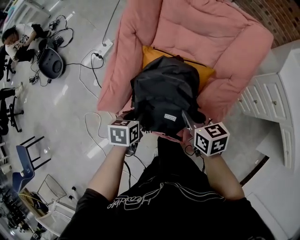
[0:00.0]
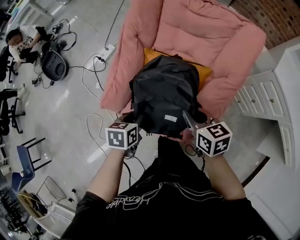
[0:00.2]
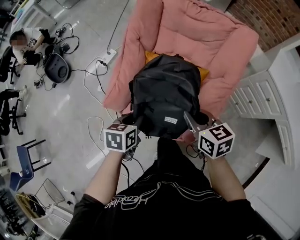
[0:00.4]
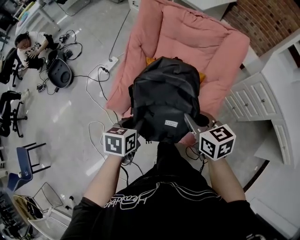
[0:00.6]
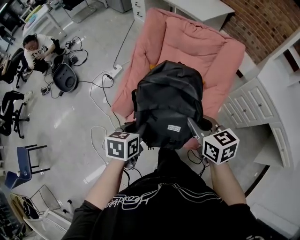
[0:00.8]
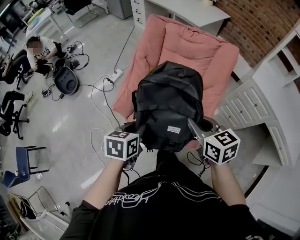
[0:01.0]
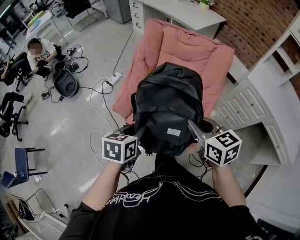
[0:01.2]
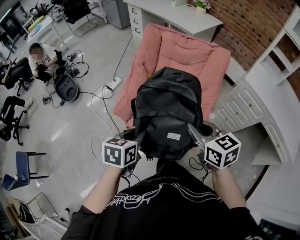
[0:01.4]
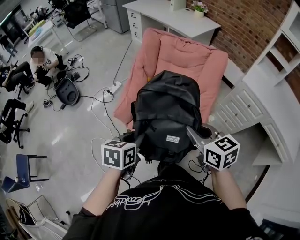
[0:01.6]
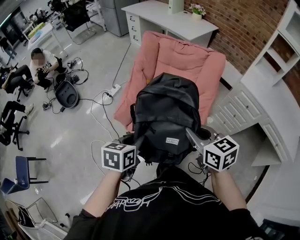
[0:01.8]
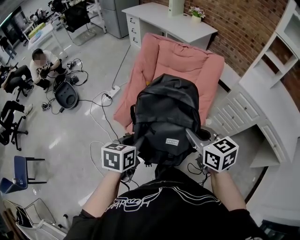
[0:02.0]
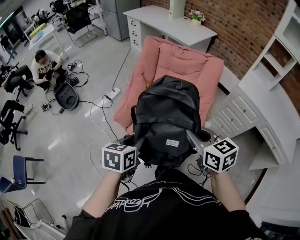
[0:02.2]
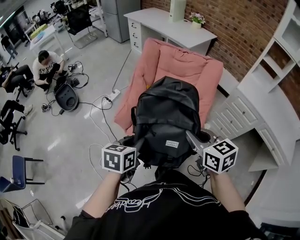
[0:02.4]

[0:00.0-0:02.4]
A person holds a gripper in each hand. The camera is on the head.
0:00.0 to 0:01.2: Both grippers move upward and backward, approximately 25 cm.
0:01.2 to 0:02.4: The left gripper moves some 5 cm. The right gripper shifts by approximately 5 cm.

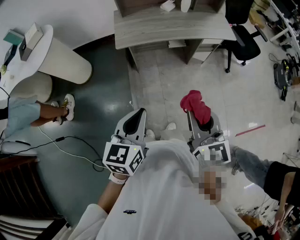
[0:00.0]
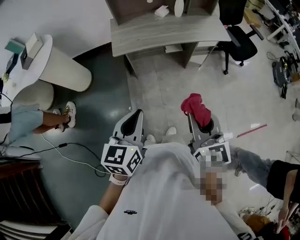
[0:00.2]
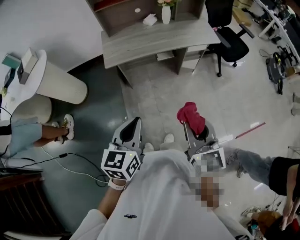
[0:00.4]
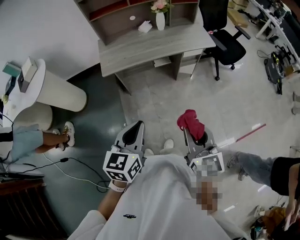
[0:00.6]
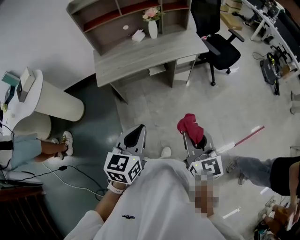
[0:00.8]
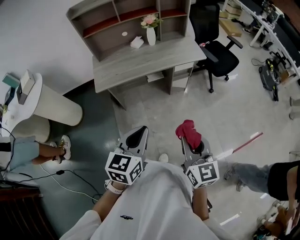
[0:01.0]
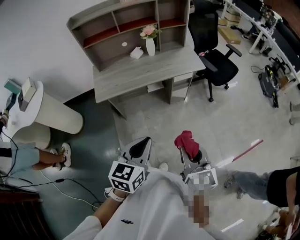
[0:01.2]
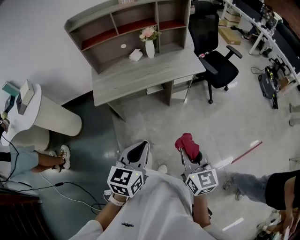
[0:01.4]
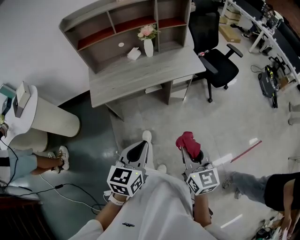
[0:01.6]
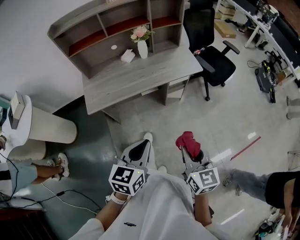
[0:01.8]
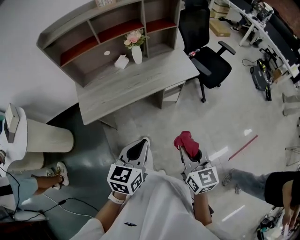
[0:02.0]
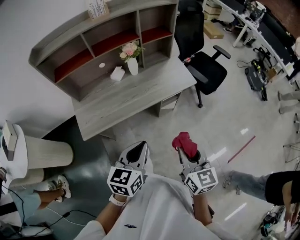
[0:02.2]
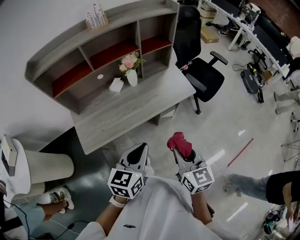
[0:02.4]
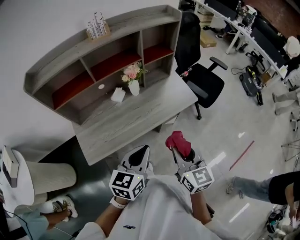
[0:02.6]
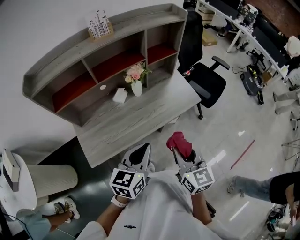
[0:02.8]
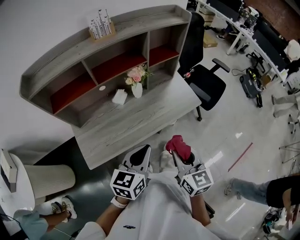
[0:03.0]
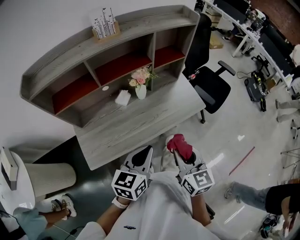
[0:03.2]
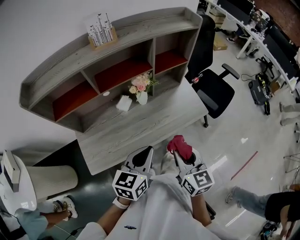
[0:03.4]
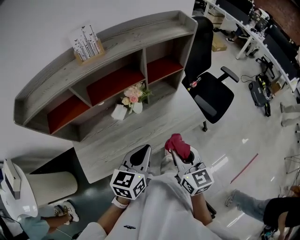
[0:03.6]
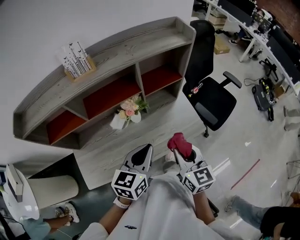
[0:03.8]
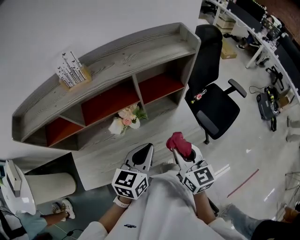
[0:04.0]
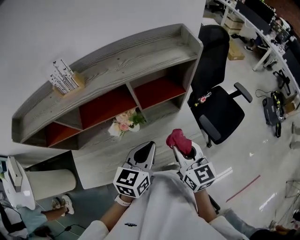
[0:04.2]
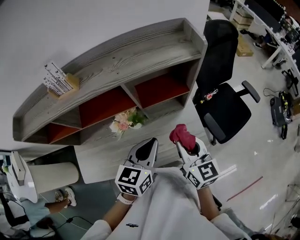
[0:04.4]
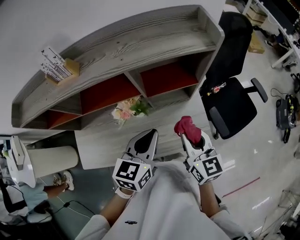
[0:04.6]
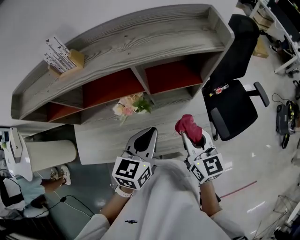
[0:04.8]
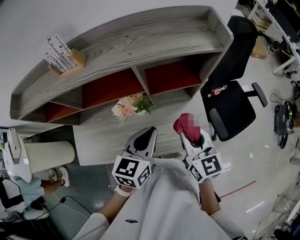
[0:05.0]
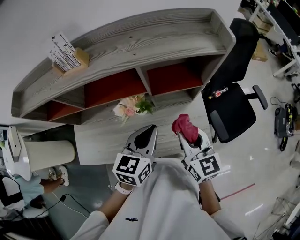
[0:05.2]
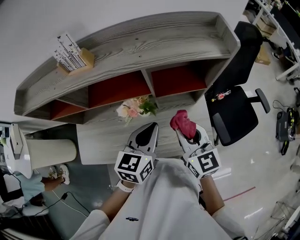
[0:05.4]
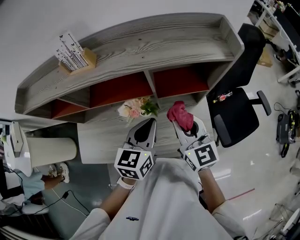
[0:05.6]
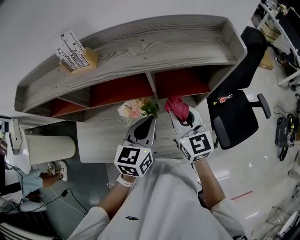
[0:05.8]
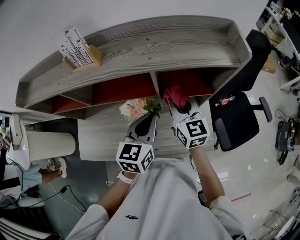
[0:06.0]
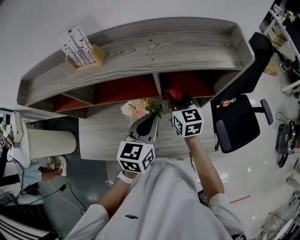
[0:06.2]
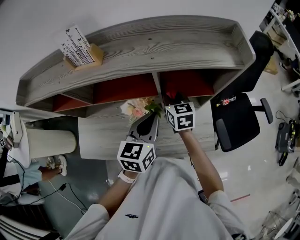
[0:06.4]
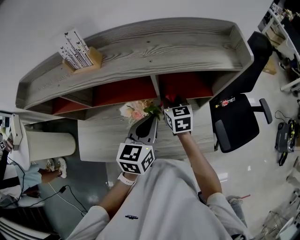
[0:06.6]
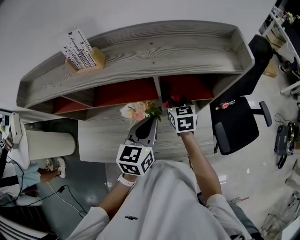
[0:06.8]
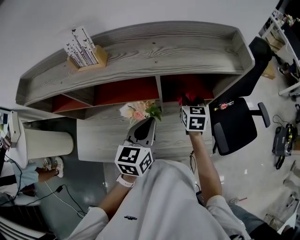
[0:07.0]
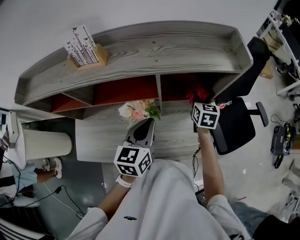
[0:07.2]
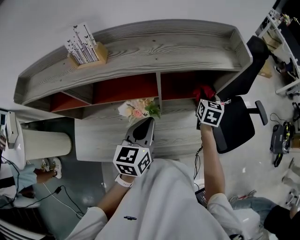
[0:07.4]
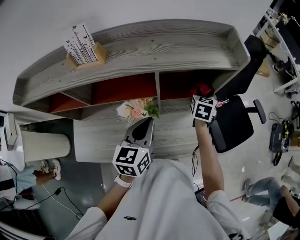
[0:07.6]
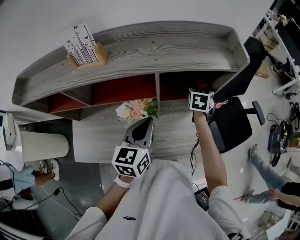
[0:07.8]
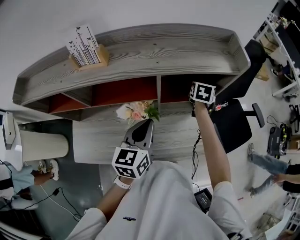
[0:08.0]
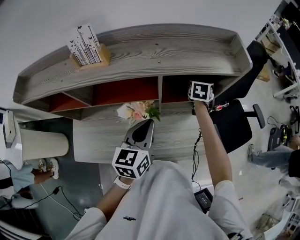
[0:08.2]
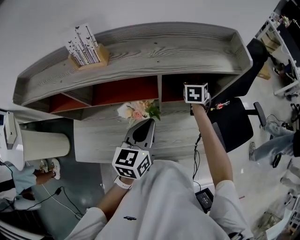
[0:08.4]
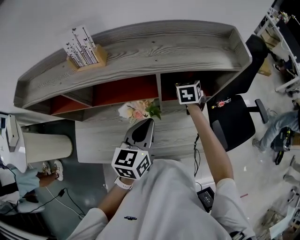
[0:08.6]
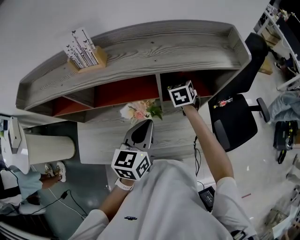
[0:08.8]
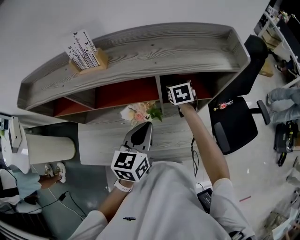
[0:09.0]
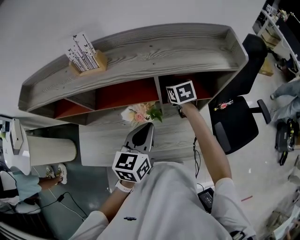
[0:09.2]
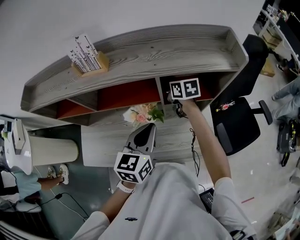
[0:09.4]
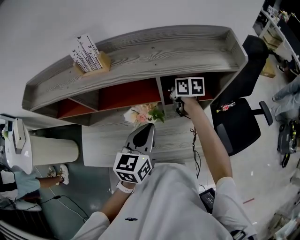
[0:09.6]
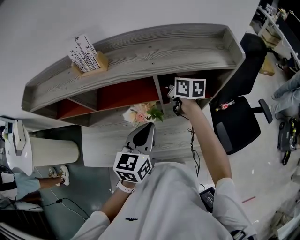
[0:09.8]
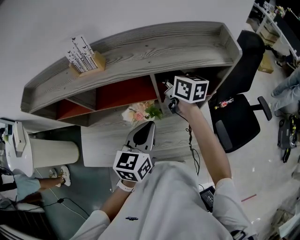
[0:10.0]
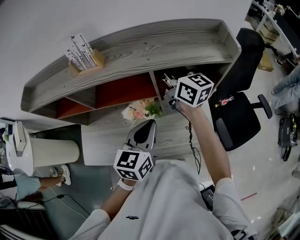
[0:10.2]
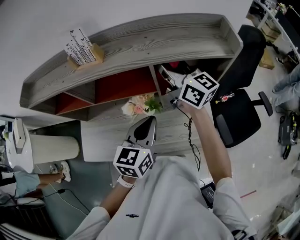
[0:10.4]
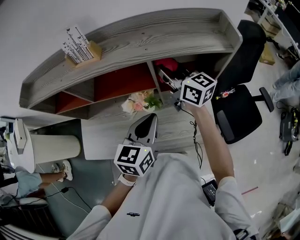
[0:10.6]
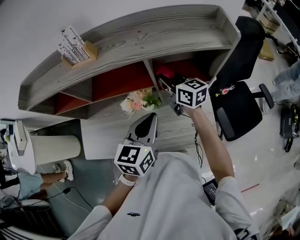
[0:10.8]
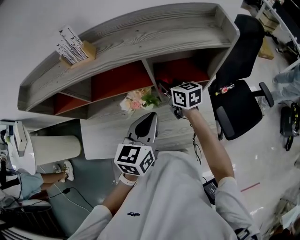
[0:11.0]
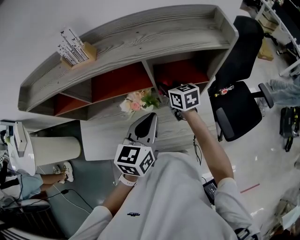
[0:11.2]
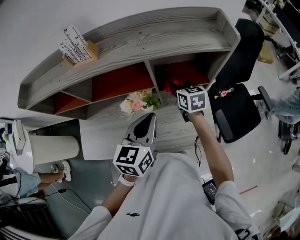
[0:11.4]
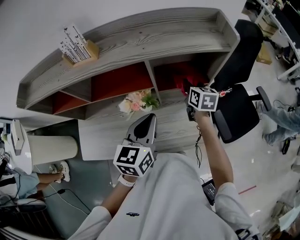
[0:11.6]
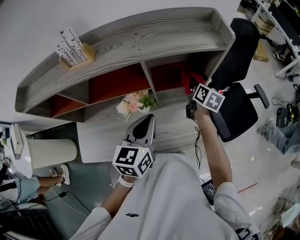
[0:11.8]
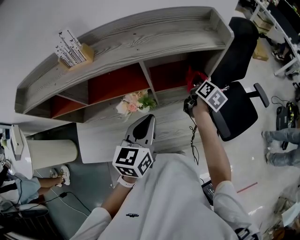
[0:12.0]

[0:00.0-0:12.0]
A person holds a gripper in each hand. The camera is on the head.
0:00.0 to 0:01.6: Both grippers move to the right and forward, roughly 20 cm.
0:01.6 to 0:03.0: The left gripper is displaced forward by some 35 cm. Meanwhile the right gripper heads forward and to the left, covering some 35 cm.
0:03.0 to 0:04.4: The right gripper goes about 35 cm forward. The left gripper is displaced forward and to the right by roughly 35 cm.
0:04.4 to 0:06.0: The right gripper travels forward and to the left by about 20 cm, while the left gripper goes approximately 10 cm forward and to the left.
0:06.0 to 0:07.6: The right gripper moves to the right, downward and forward, some 20 cm, and changes its angle by roughly 40 degrees.
0:07.6 to 0:09.0: The right gripper moves to the left, about 15 cm, and turns by some 30 degrees.
0:09.0 to 0:10.4: The right gripper goes about 25 cm upward, and points its fingers roughly 60 degrees further upward.
0:10.4 to 0:12.0: The right gripper is displaced downward by about 25 cm, and tilts its fingers approximately 50 degrees downward.

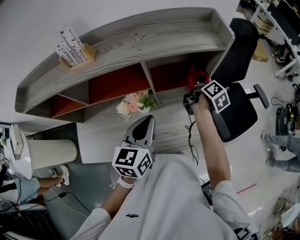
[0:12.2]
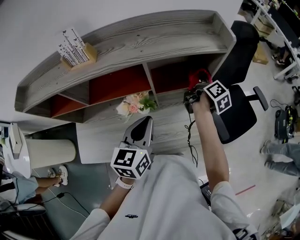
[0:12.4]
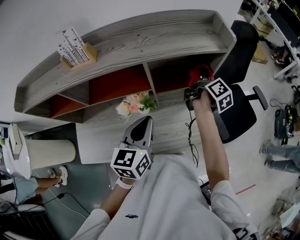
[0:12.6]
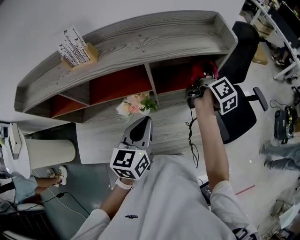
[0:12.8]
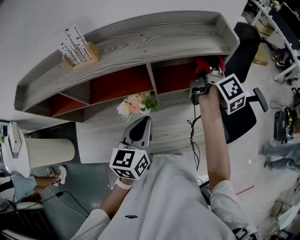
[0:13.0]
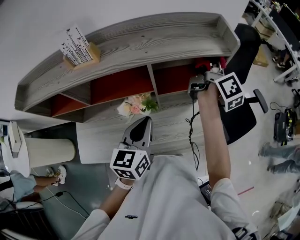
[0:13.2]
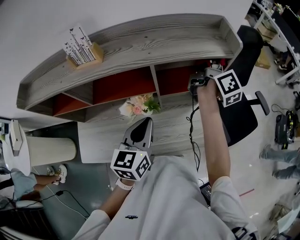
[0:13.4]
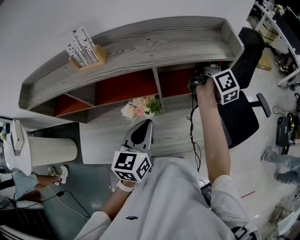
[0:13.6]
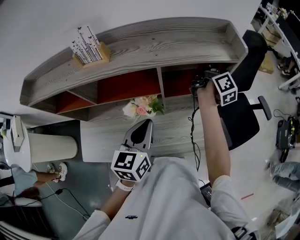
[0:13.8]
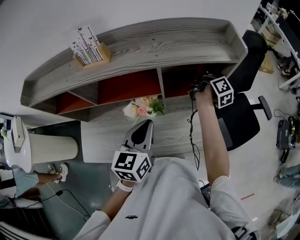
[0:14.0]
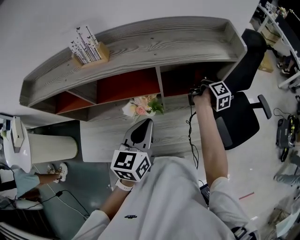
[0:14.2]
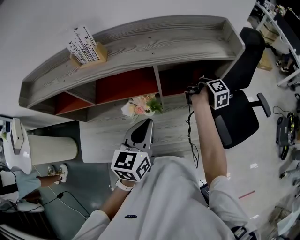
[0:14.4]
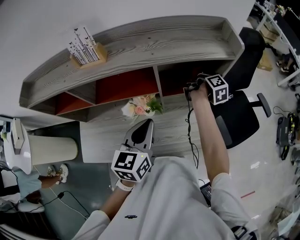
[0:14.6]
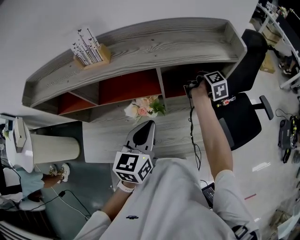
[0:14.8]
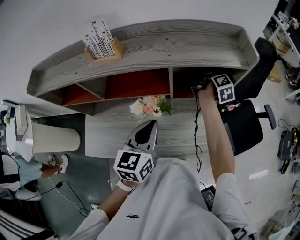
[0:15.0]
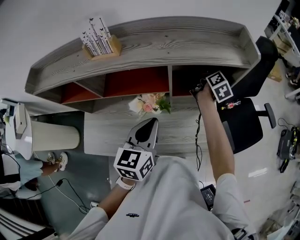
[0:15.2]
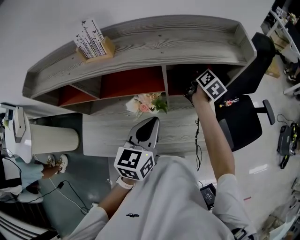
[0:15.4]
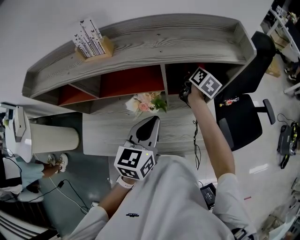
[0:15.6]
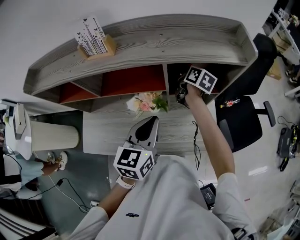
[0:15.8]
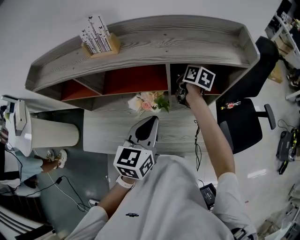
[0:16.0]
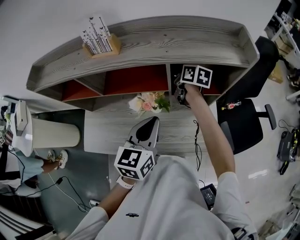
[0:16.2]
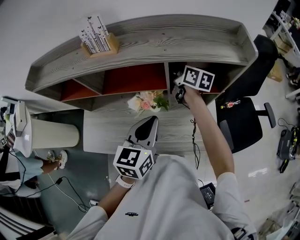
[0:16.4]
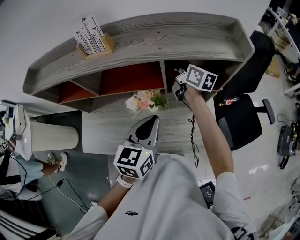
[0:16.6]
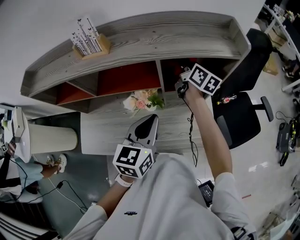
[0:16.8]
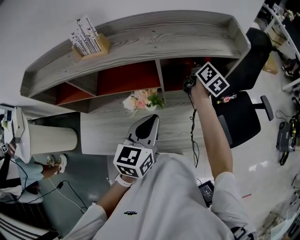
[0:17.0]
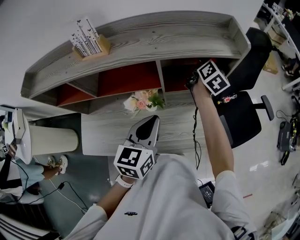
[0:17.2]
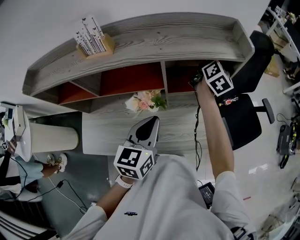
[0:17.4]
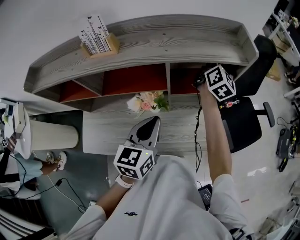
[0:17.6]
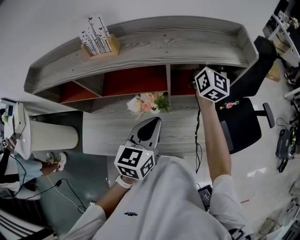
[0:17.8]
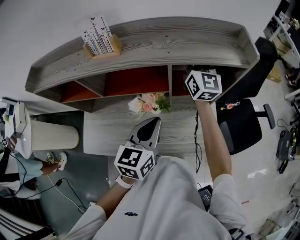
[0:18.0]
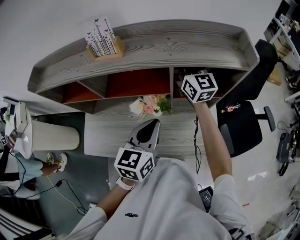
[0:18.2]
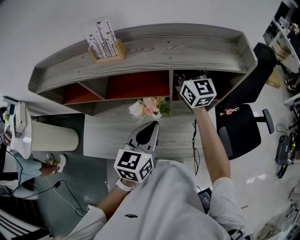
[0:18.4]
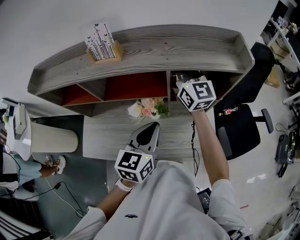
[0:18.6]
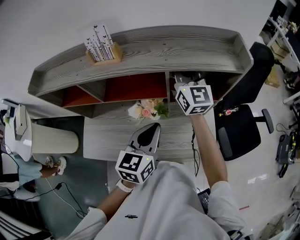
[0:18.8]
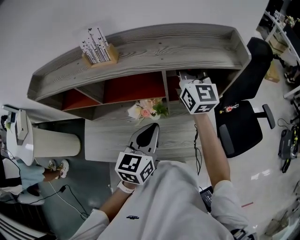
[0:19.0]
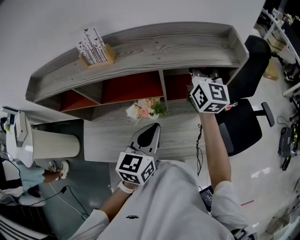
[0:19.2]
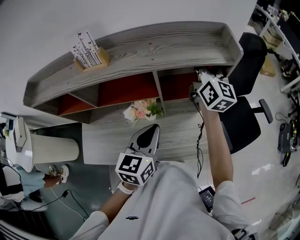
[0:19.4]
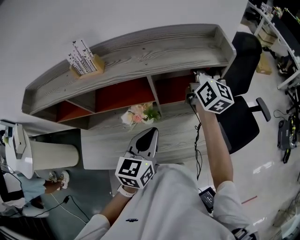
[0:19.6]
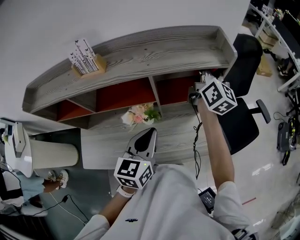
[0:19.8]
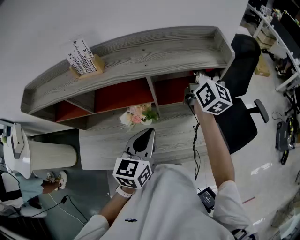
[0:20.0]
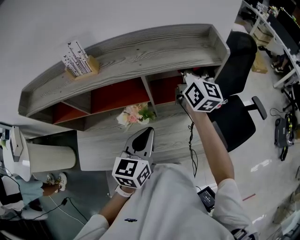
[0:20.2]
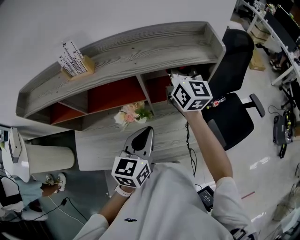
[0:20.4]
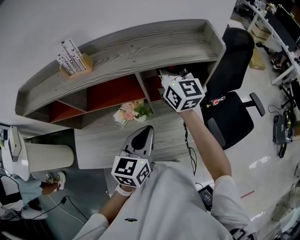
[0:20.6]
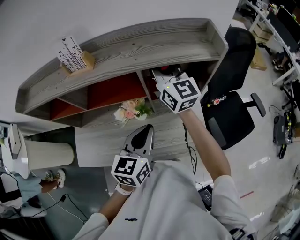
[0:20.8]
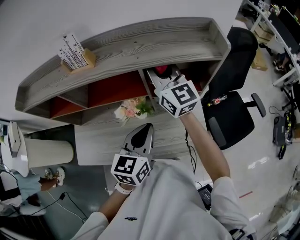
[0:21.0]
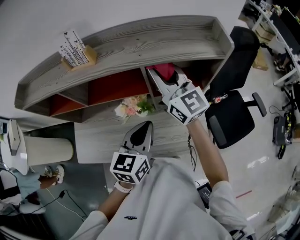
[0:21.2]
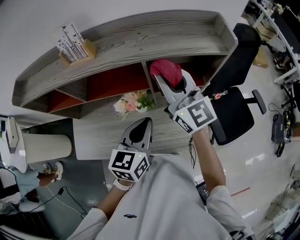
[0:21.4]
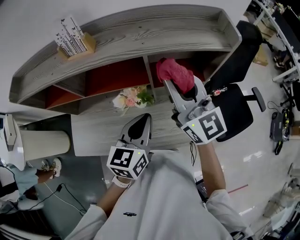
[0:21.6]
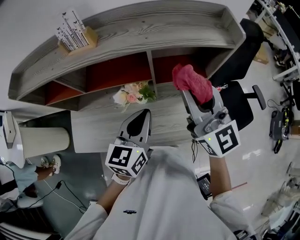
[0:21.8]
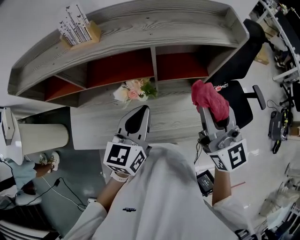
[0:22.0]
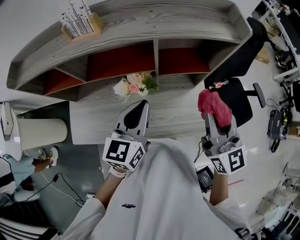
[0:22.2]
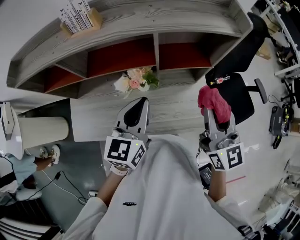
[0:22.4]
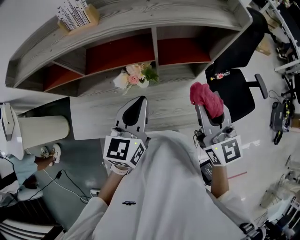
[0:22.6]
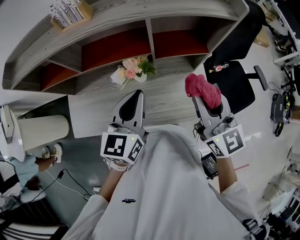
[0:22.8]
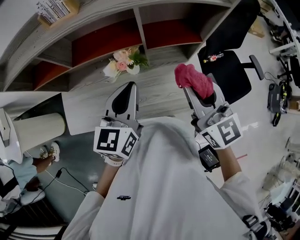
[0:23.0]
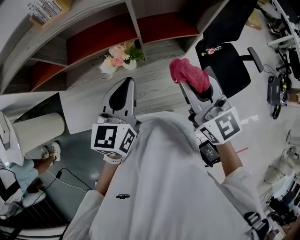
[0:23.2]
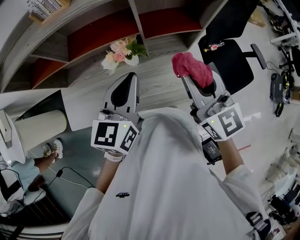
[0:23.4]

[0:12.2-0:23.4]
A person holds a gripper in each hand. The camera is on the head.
0:12.2 to 0:13.8: The right gripper shifts approximately 15 cm upward and forward, and turns by about 30 degrees.
0:13.8 to 0:15.4: The right gripper is displaced downward and to the left by roughly 10 cm, and changes its angle by approximately 30 degrees.
0:15.4 to 0:17.0: The right gripper goes some 5 cm upward, and moves about 15 cm to the left and comes back.
0:17.0 to 0:18.6: The right gripper goes roughly 20 cm to the left, upward and backward, and swivels approximately 50 degrees.
0:18.6 to 0:20.2: The right gripper travels to the right by approximately 15 cm, and swivels about 20 degrees.
0:20.2 to 0:21.8: The right gripper moves backward, approximately 15 cm, and turns by some 30 degrees.
0:21.8 to 0:23.4: The right gripper travels downward and backward by about 15 cm.
